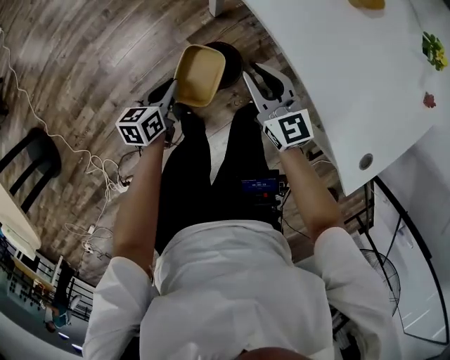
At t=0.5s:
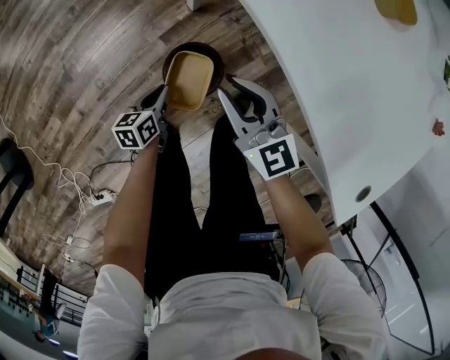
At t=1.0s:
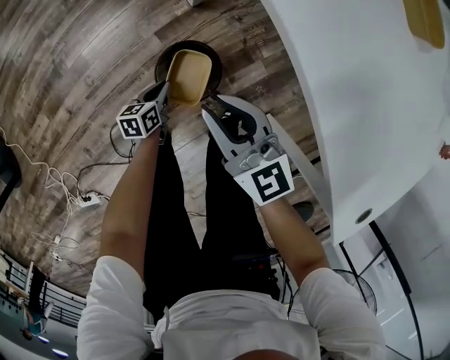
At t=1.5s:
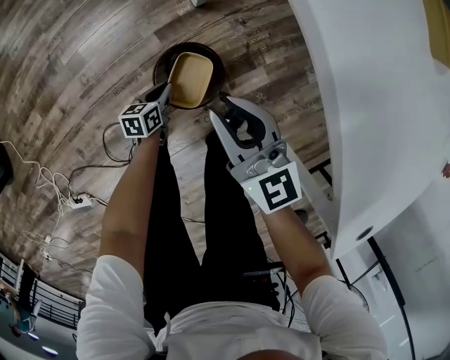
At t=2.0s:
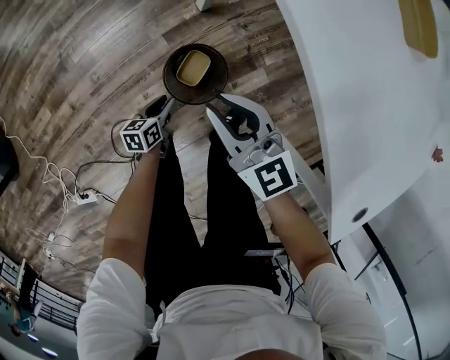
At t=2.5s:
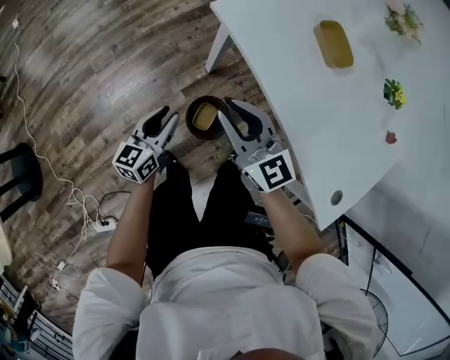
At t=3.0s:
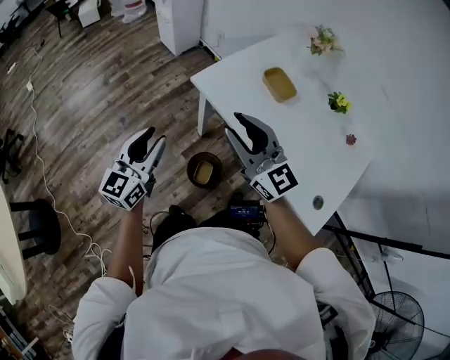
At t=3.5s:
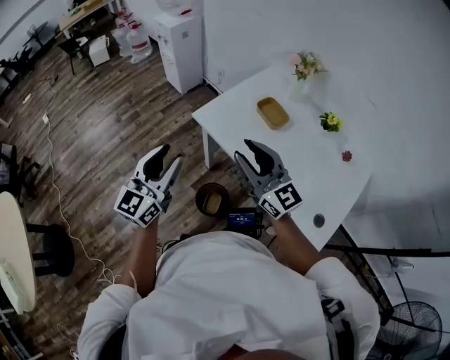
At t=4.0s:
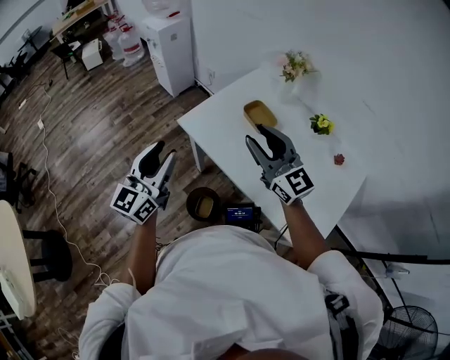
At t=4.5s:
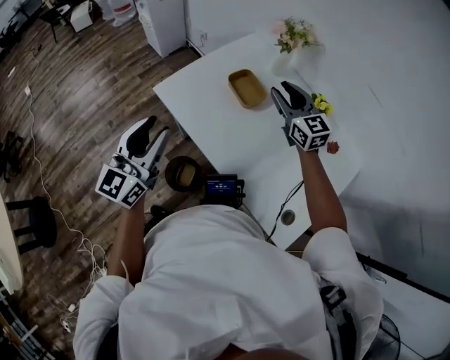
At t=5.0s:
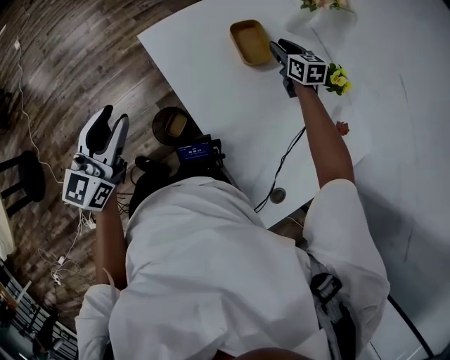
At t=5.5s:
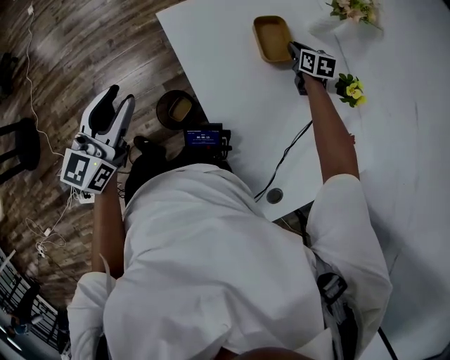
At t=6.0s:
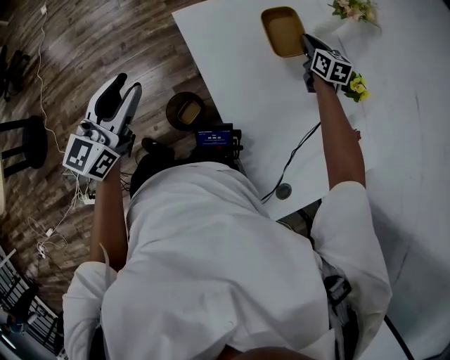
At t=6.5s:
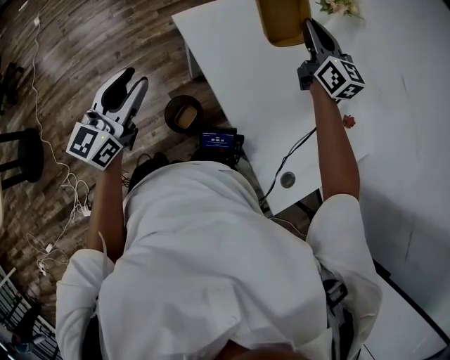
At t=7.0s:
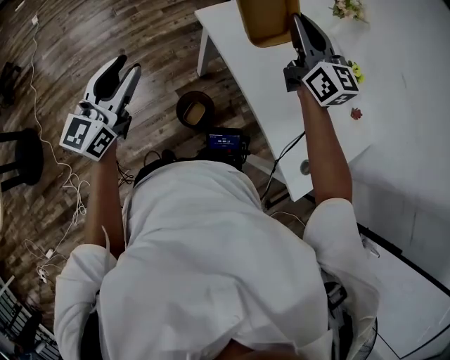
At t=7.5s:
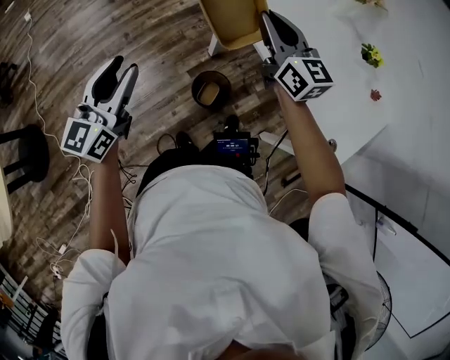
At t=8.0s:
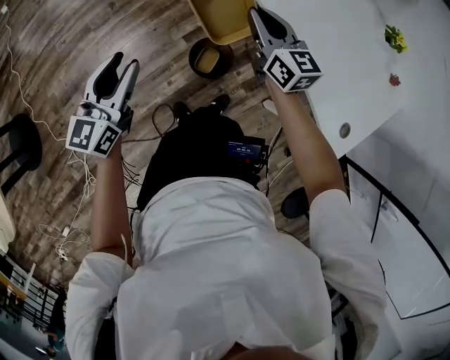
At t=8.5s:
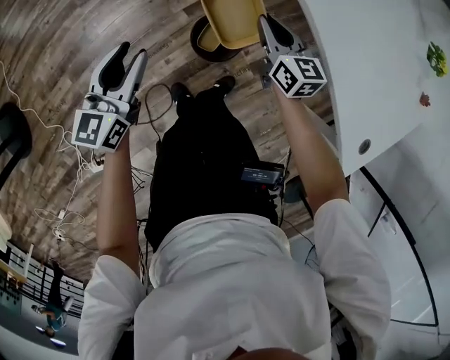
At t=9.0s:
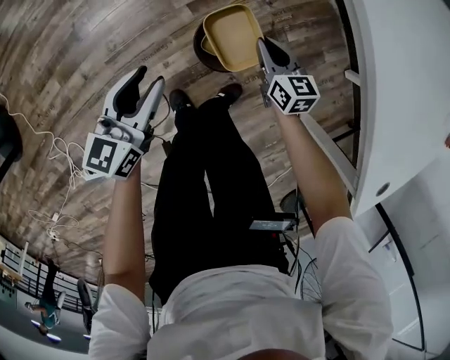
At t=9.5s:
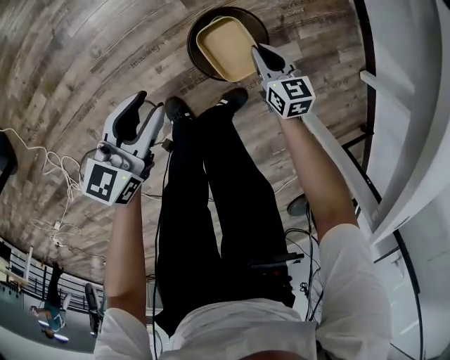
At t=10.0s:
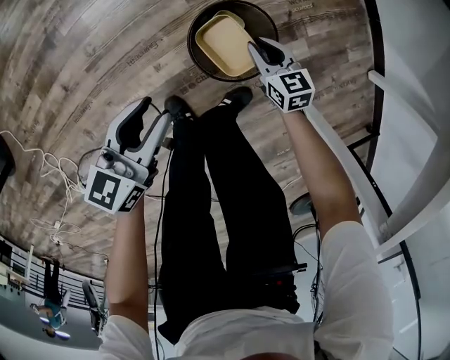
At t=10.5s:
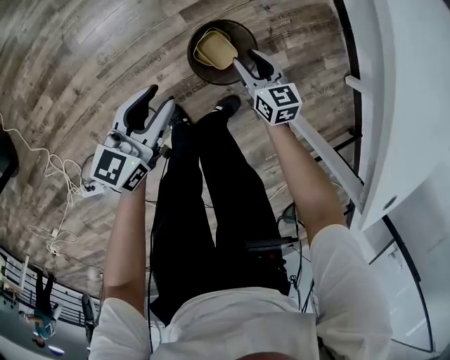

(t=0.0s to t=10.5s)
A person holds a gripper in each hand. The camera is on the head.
t=0.0s - t=2.0s: The right gripper is displaced downward by approximately 10 cm. The left gripper goes approximately 25 cm downward, and opens.
t=2.0s - t=4.0s: The left gripper moves upward, some 80 cm, and tilts its fingers about 50 degrees upward, while the right gripper goes about 50 cm upward, and turns by approximately 30 degrees.
t=4.0s - t=6.5s: The right gripper heads forward and to the right, covering about 25 cm, reaches about 35 cm downward, then returns, turns by approximately 20 degrees, and closes its fingers. The left gripper travels downward by about 10 cm.
t=6.5s - t=8.5s: The two grippers go some 40 cm downward and to the left. The right gripper turns by some 20 degrees.
t=8.5s - t=10.5s: The grippers both shift downward by some 25 cm. The right gripper opens its fingers.

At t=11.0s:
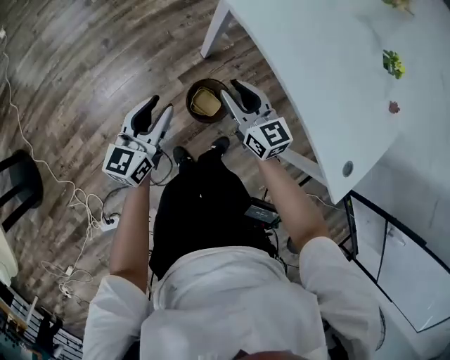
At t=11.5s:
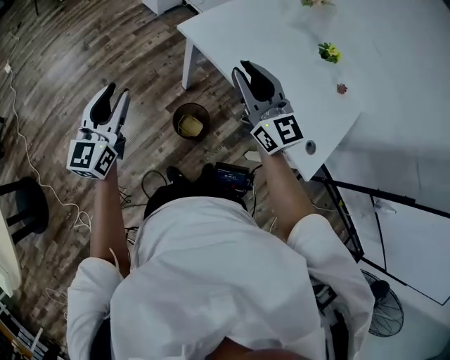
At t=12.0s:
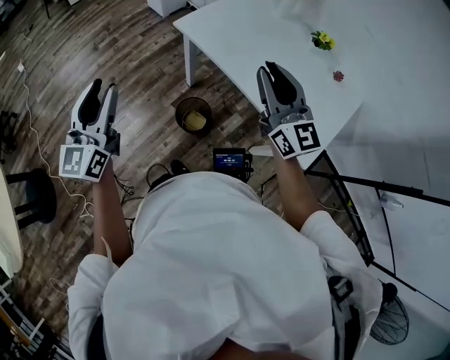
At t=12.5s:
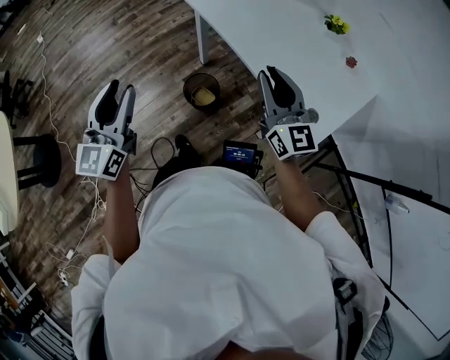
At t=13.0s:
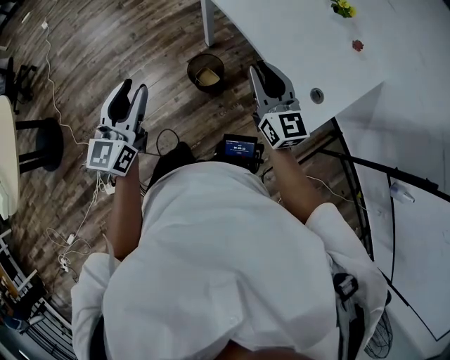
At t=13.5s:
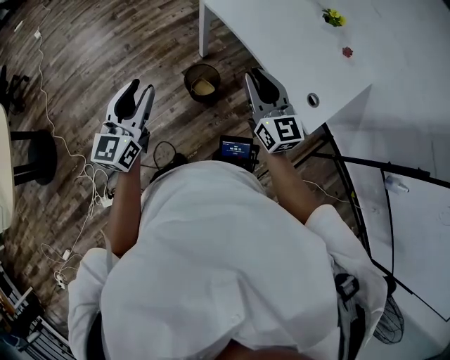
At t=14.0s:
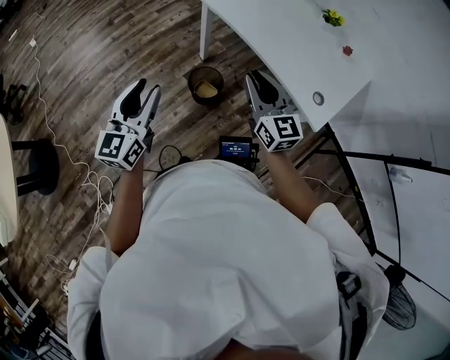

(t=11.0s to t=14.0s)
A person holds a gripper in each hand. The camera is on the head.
t=11.0s - t=12.5s: The right gripper moves upward, backward and to the right, approximately 40 cm, and rotates approximately 30 degrees; the left gripper is displaced upward and backward by approximately 40 cm, and turns by about 30 degrees.
t=12.5s - t=14.0s: The left gripper heads backward and to the left, covering about 10 cm, while the right gripper shifts roughly 15 cm to the left and backward.

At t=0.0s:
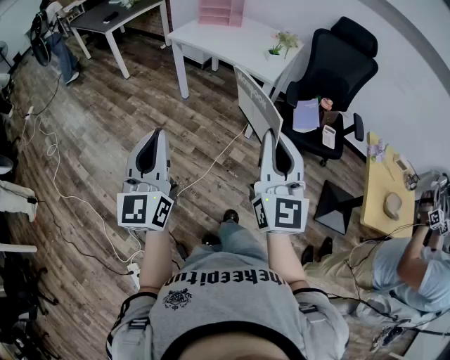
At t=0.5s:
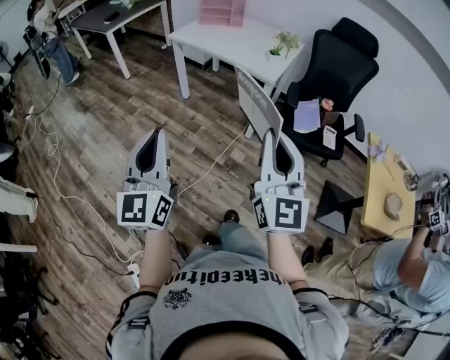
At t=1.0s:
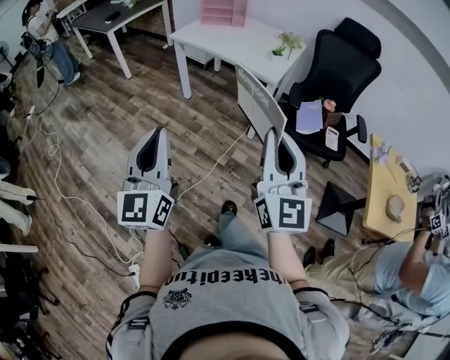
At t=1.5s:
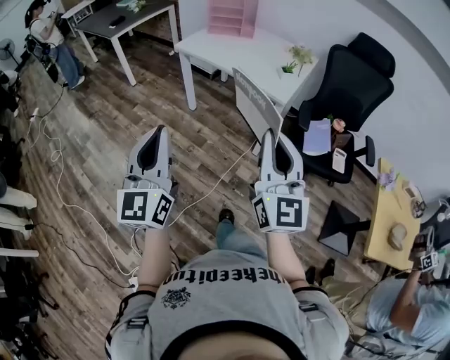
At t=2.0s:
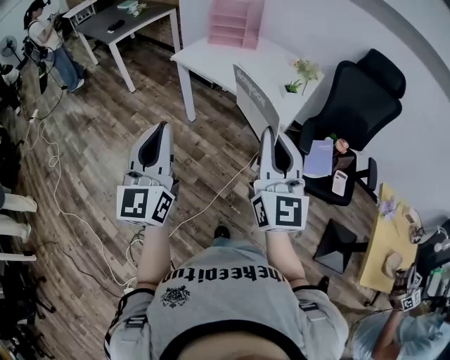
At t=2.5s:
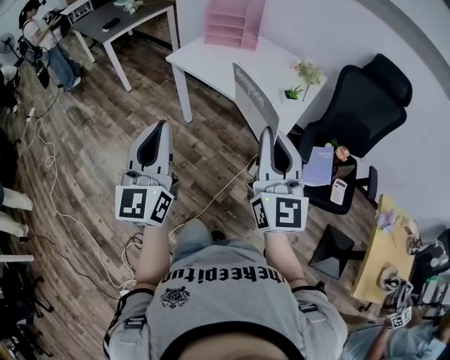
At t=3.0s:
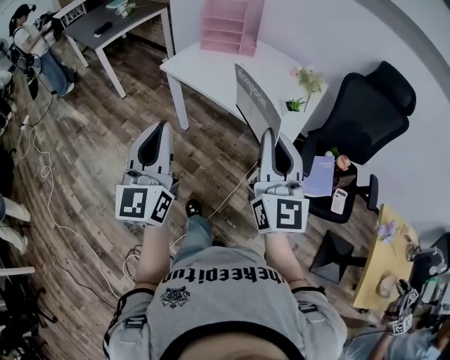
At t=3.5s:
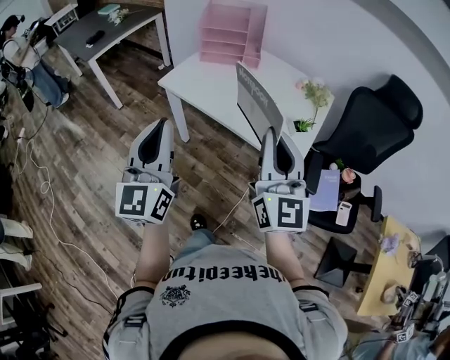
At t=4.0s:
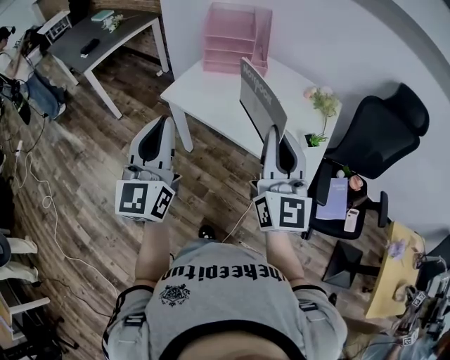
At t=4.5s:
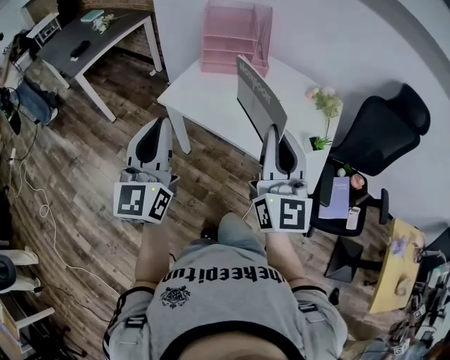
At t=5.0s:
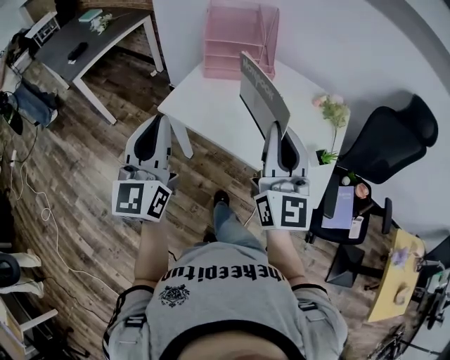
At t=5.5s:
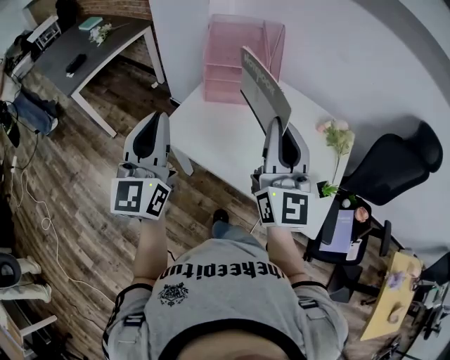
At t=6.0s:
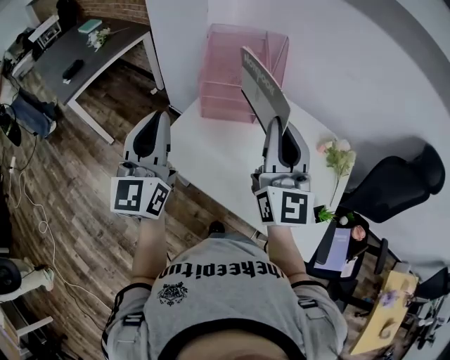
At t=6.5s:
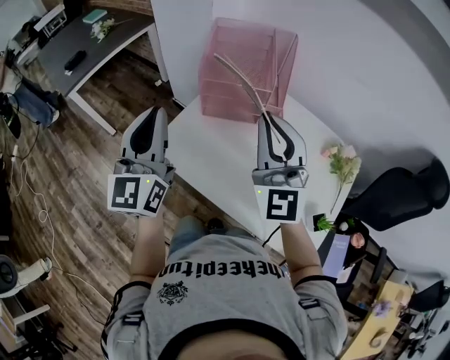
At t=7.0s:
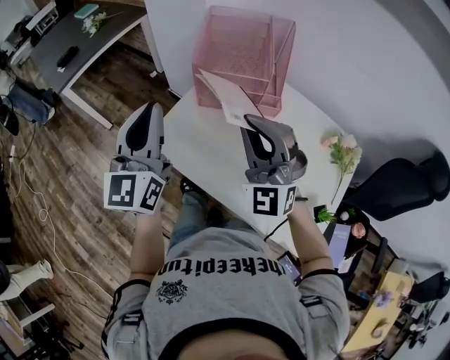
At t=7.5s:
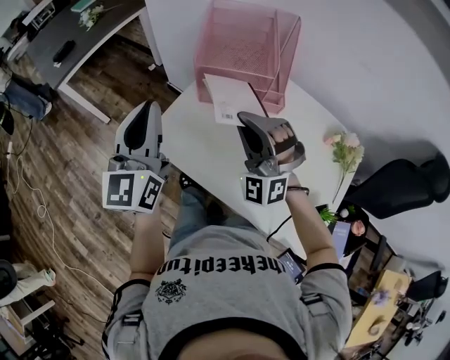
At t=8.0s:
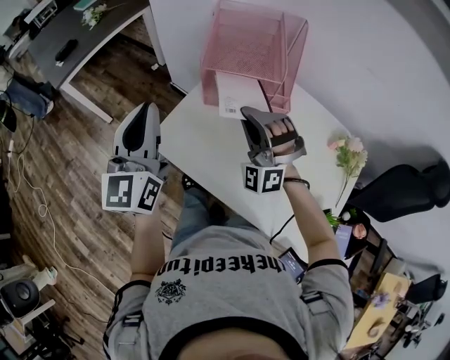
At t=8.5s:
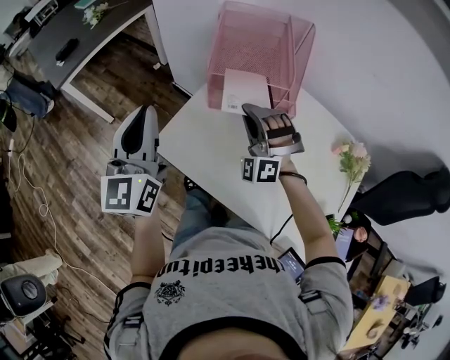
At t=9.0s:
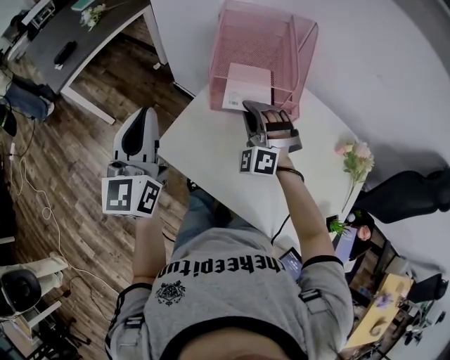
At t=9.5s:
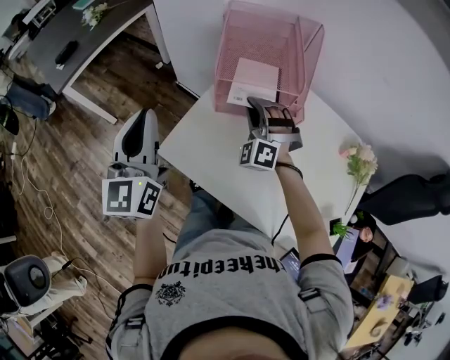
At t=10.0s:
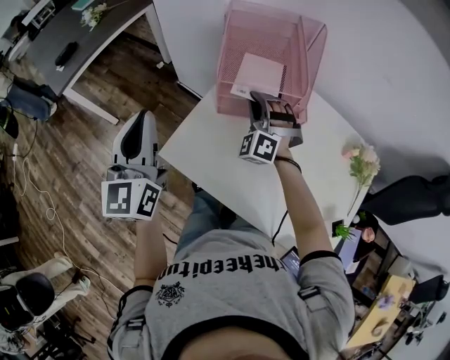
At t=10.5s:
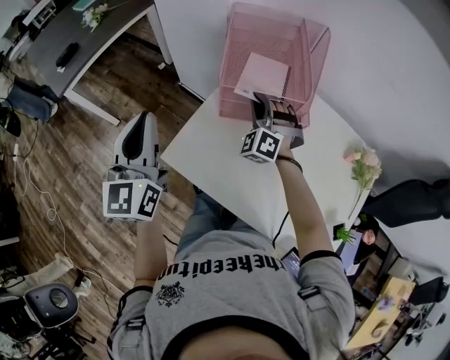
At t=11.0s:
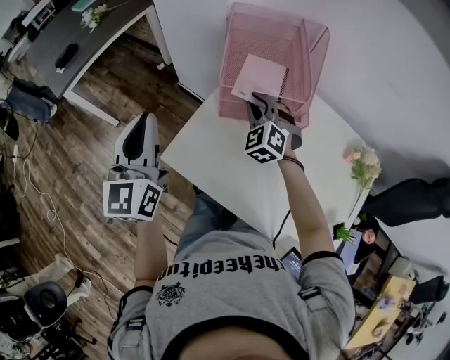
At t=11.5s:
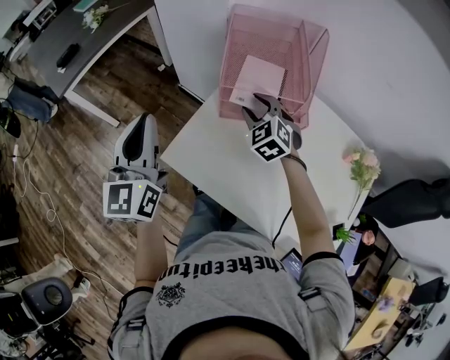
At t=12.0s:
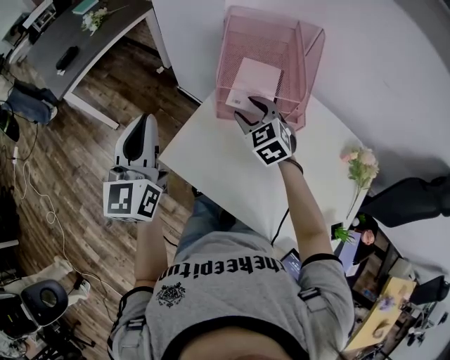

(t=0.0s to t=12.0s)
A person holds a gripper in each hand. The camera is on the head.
t=0.0s - t=2.0s: Both grippers travel together forward, about 25 cm.
t=2.0s - t=4.0s: Both grippers move forward, roughly 35 cm.
t=4.0s - t=6.0s: Both grippers travel together forward, approximately 35 cm.
t=6.0s - t=8.0s: The right gripper heads downward and forward, covering roughly 20 cm, and twists about 70 degrees counterclockwise, seen from behind. Meanwhile the left gripper is displaced forward by approximately 5 cm.
t=8.0s - t=10.0s: The left gripper moves forward and to the left, approximately 10 cm. The right gripper moves forward and downward, roughly 15 cm, and swivels approximately 20 degrees.
t=10.0s - t=12.0s: The right gripper rotates roughly 50 degrees, and opens.

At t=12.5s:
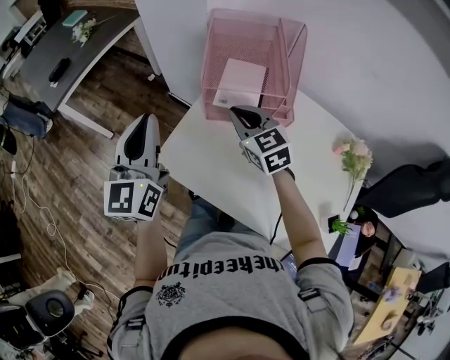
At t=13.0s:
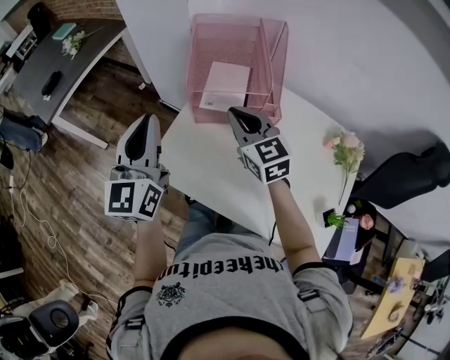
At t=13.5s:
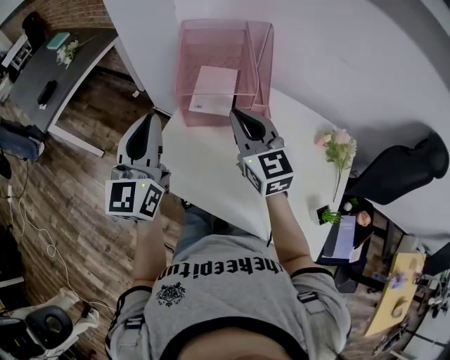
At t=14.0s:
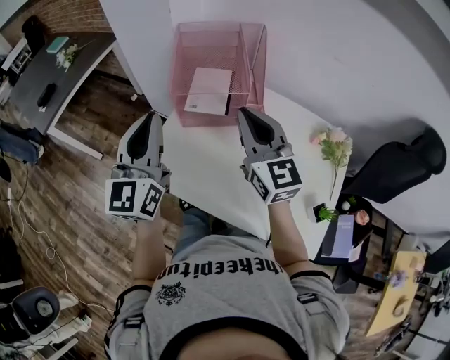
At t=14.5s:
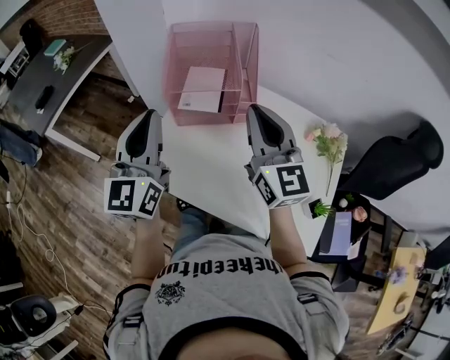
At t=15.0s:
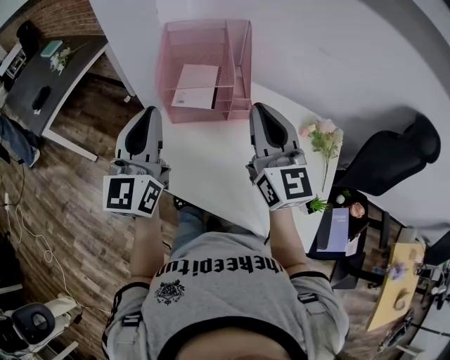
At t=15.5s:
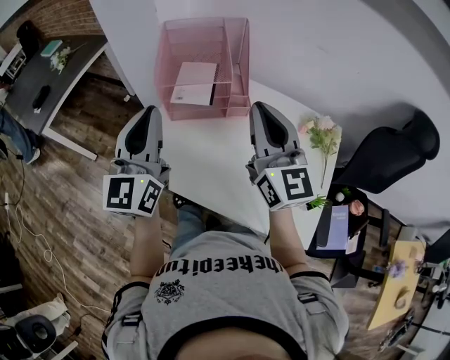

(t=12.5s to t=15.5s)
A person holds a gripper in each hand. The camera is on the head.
t=12.5s - t=14.0s: The left gripper is displaced to the right by approximately 10 cm. Meanwhile the right gripper is displaced upward, to the right and backward by some 20 cm, and changes its angle by about 30 degrees.
t=14.0s - t=15.5s: The right gripper shifts some 10 cm to the right and backward, while the left gripper changes place by about 5 cm.
